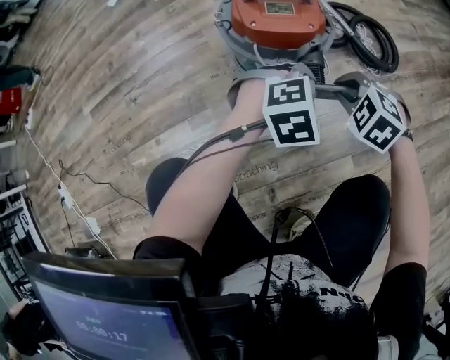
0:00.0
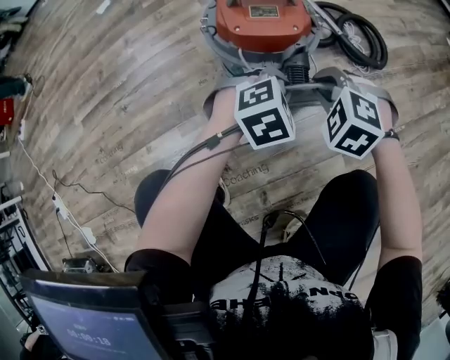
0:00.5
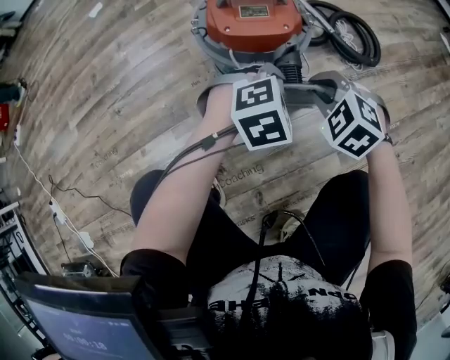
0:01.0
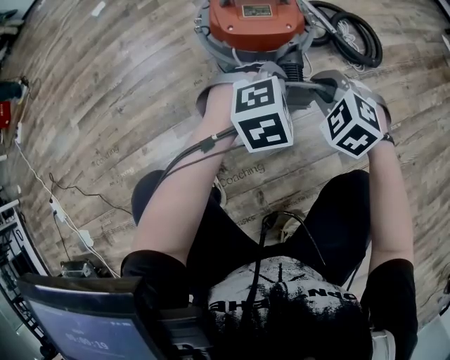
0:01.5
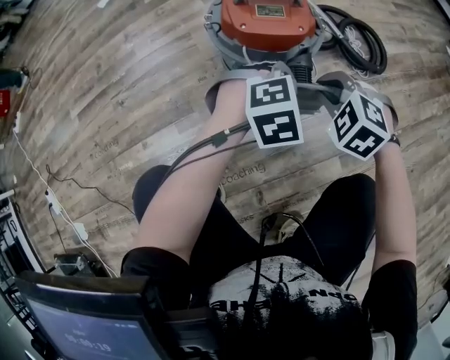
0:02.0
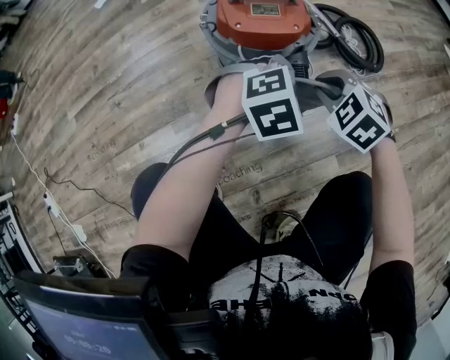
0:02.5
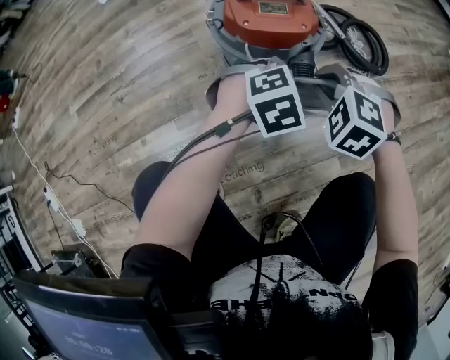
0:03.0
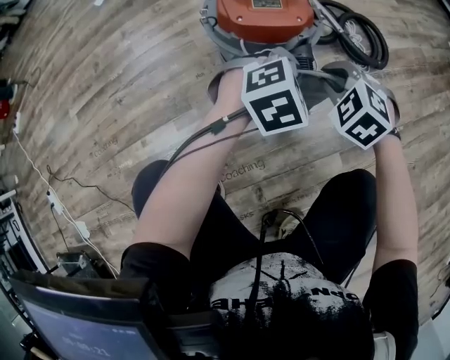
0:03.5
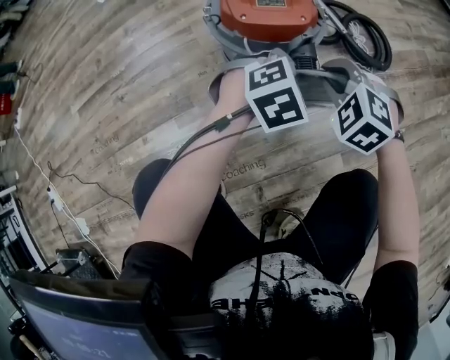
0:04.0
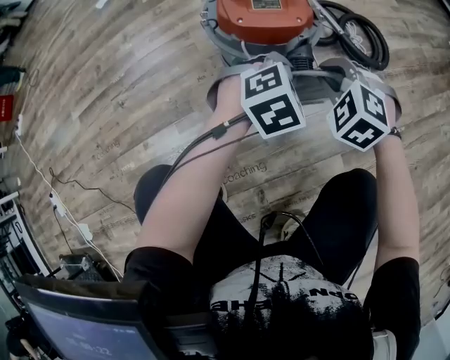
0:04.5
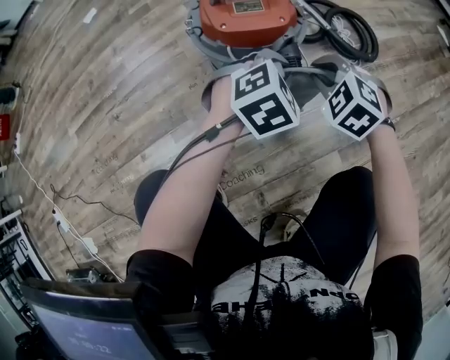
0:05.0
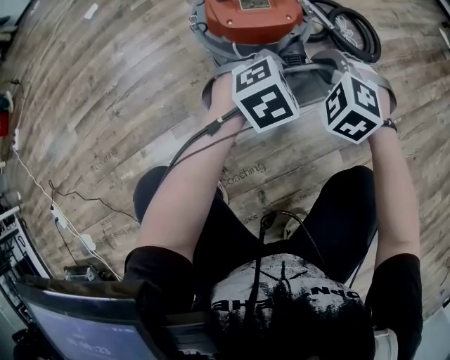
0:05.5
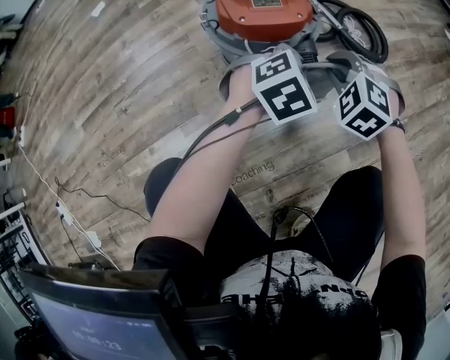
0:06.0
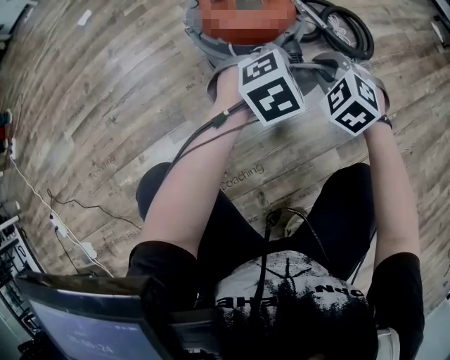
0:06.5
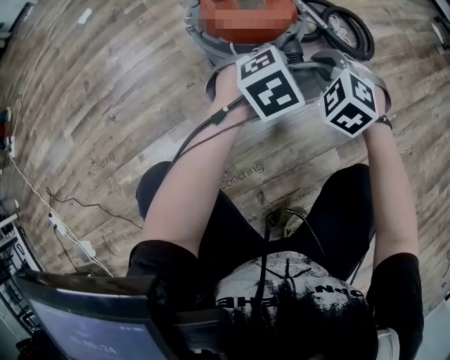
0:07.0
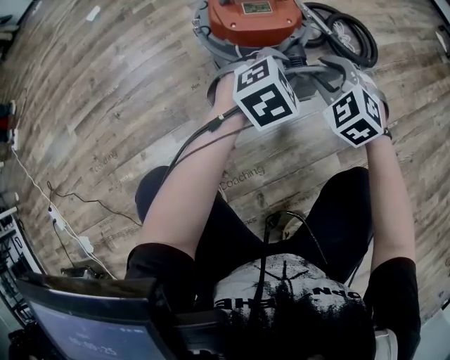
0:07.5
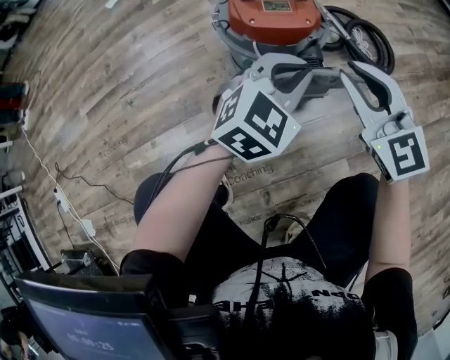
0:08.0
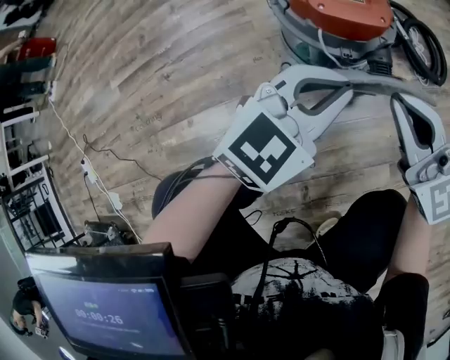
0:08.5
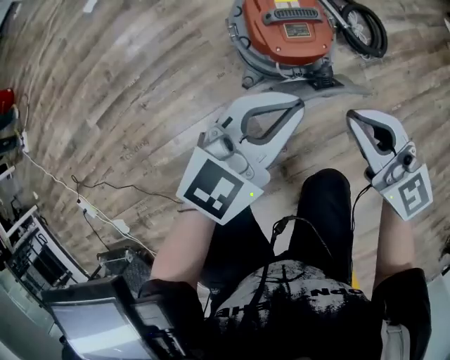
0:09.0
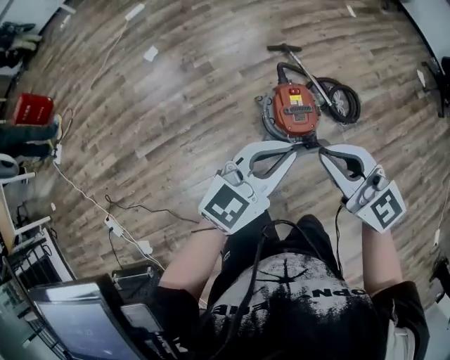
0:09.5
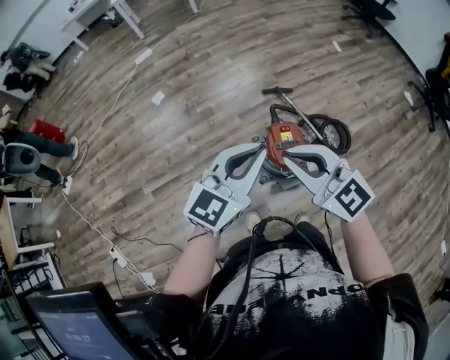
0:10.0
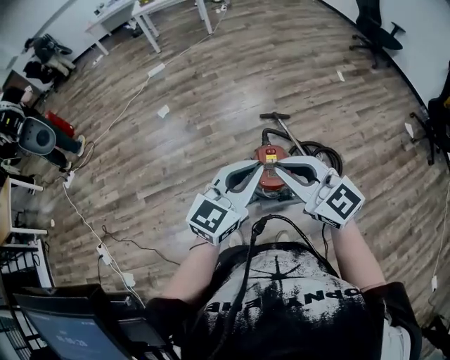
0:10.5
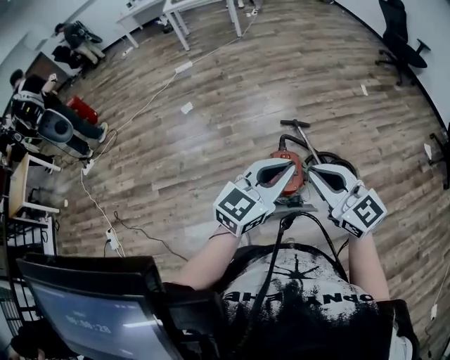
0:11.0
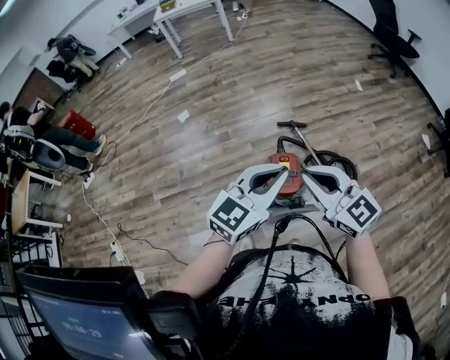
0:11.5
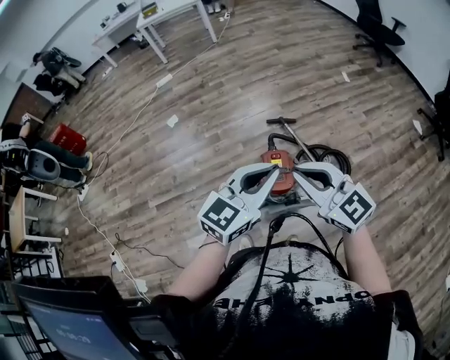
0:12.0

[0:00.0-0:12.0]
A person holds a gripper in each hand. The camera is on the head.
0:00.0 to 0:06.0: The grippers move only a little.
0:06.0 to 0:08.0: Both grippers travel together upward, approximately 10 cm. The right gripper angles its fingers upward, by about 40 degrees; the left gripper turns by roughly 30 degrees.
0:08.0 to 0:10.0: The right gripper moves upward and to the left, approximately 60 cm. Meanwhile the left gripper goes some 60 cm upward, and turns by approximately 20 degrees.
0:10.0 to 0:12.0: Both grippers travel together to the right, approximately 15 cm.

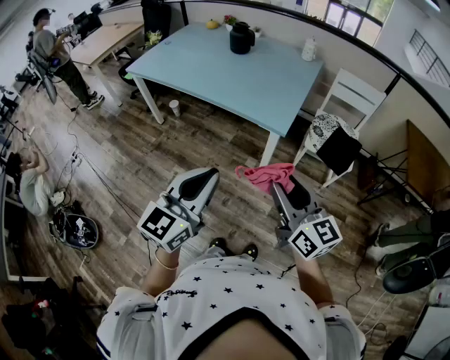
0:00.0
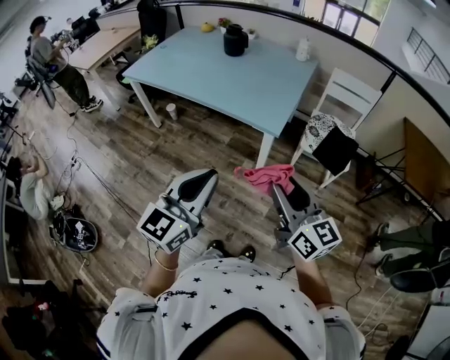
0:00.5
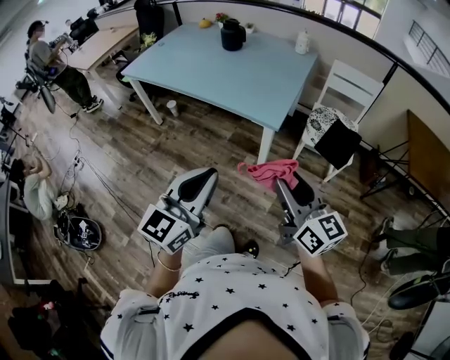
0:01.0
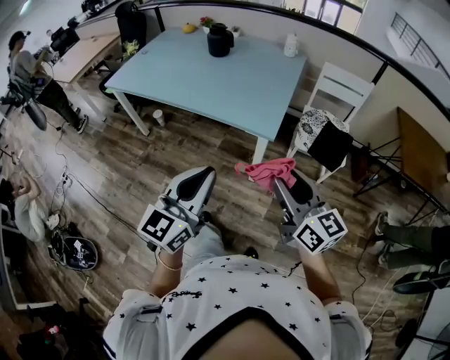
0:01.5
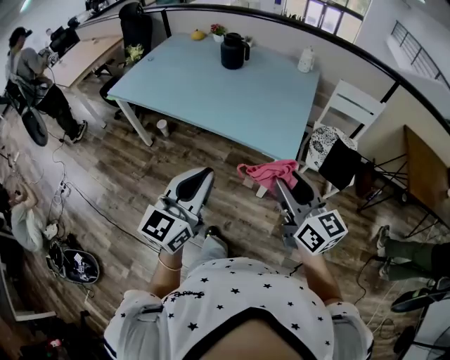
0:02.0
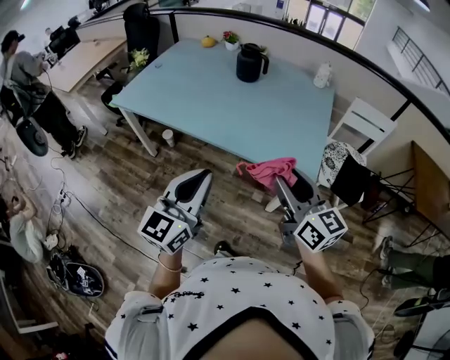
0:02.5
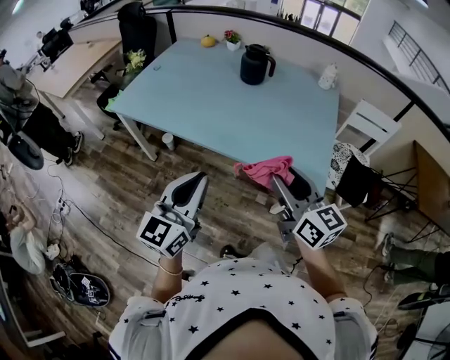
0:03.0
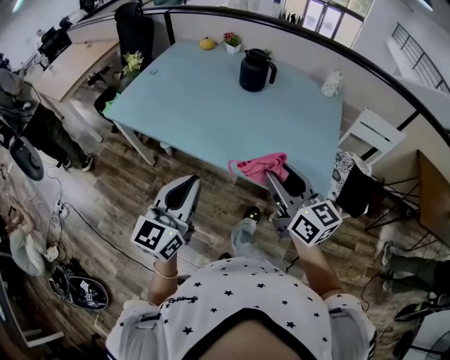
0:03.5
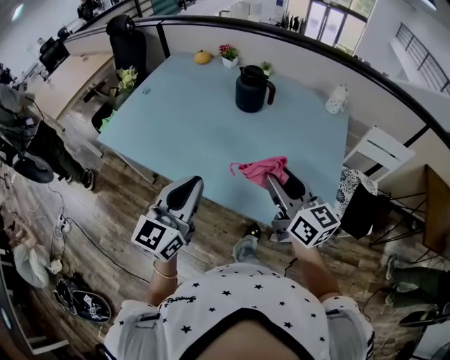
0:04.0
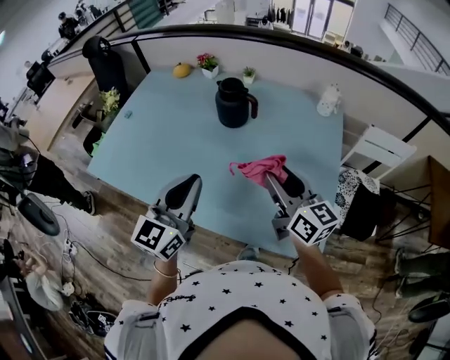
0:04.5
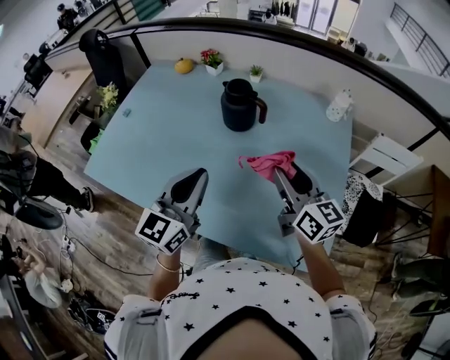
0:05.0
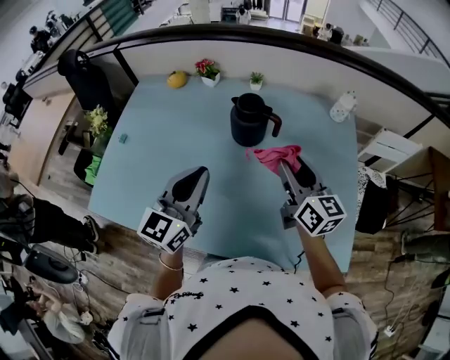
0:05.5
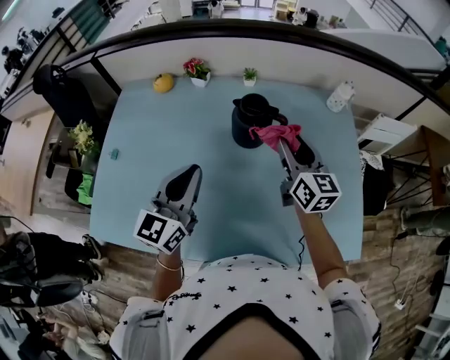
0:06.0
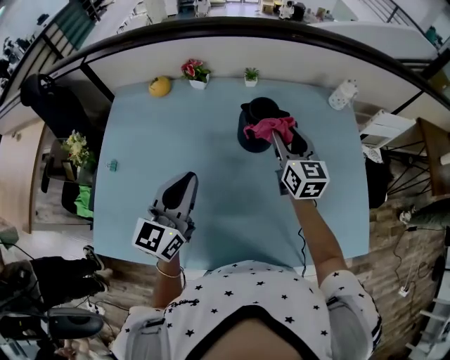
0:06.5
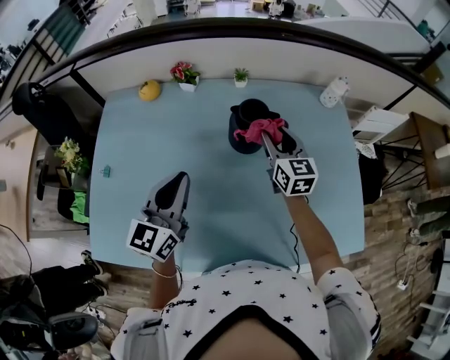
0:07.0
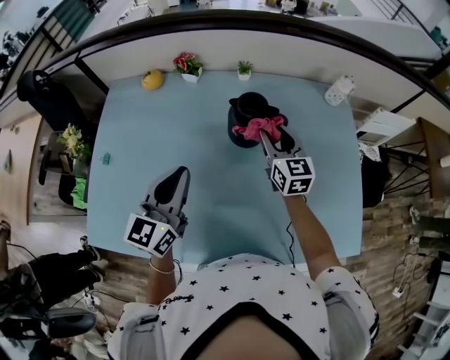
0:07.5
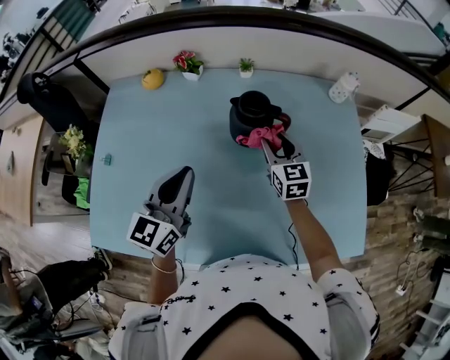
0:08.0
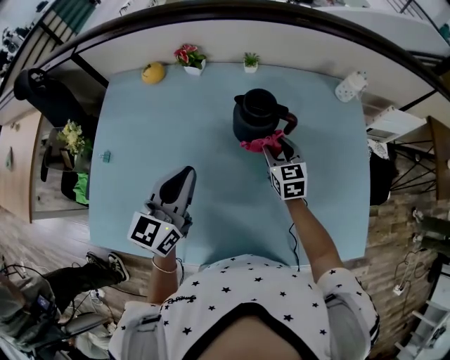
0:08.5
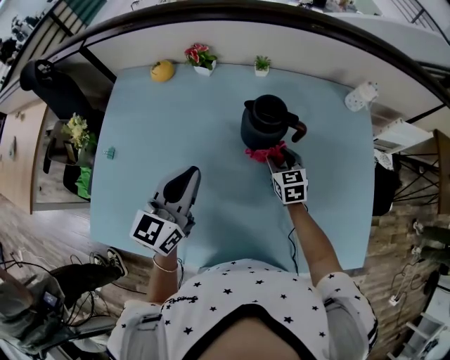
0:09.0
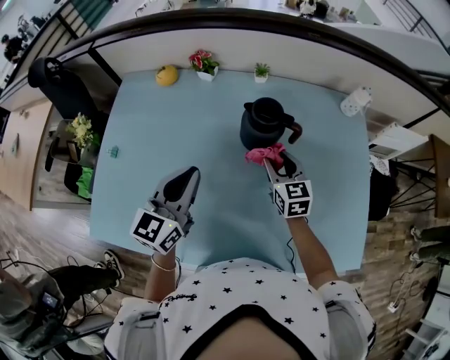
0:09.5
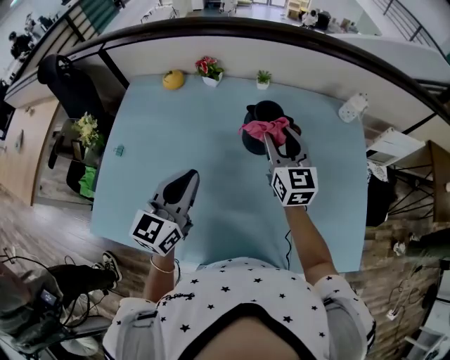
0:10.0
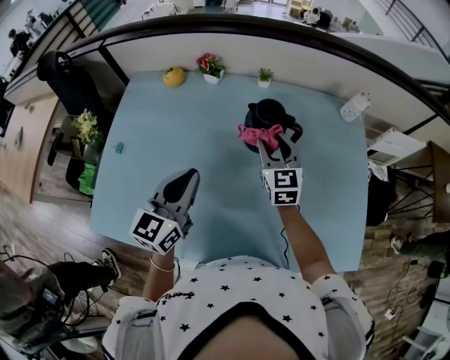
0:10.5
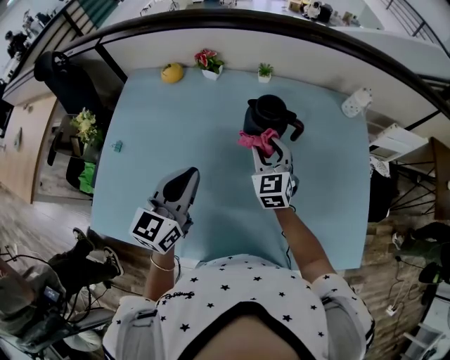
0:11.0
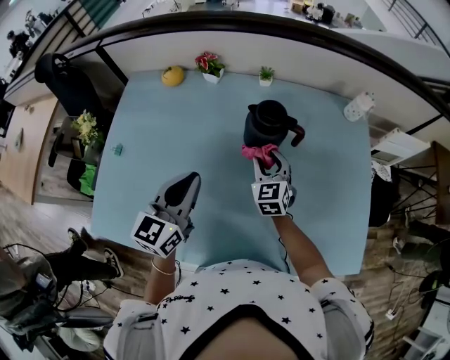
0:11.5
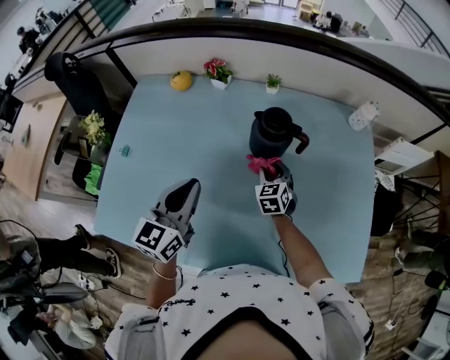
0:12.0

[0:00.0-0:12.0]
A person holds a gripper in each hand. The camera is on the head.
0:00.0 to 0:02.0: The left gripper goes approximately 20 cm forward and to the left. The right gripper goes roughly 15 cm forward.
0:02.0 to 0:04.0: Both grippers move forward, some 35 cm.
0:04.0 to 0:06.0: The grippers both shift forward by some 30 cm. The right gripper changes its angle by about 30 degrees.
0:06.0 to 0:08.0: The right gripper heads downward, covering about 10 cm.
0:08.0 to 0:10.0: The right gripper shifts some 10 cm upward.
0:10.0 to 0:12.0: The right gripper is displaced downward by approximately 20 cm, and rotates roughly 30 degrees.

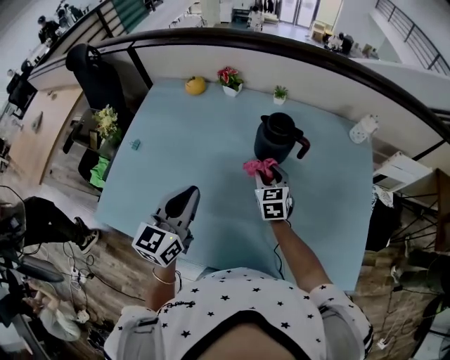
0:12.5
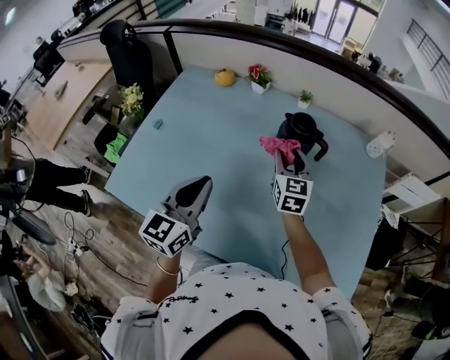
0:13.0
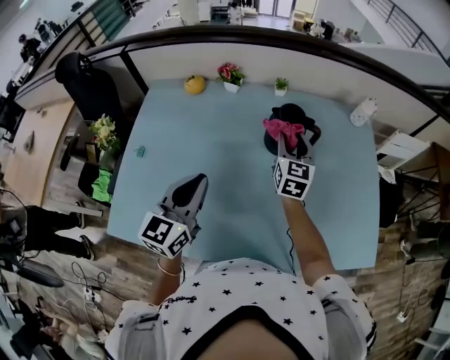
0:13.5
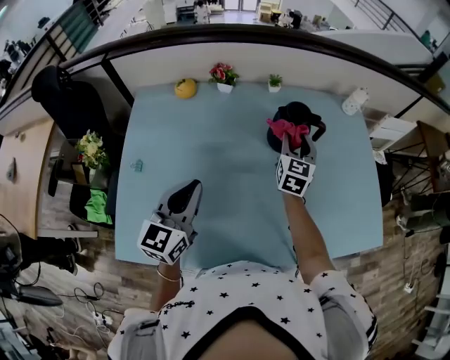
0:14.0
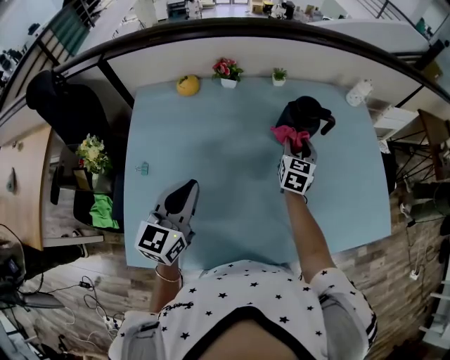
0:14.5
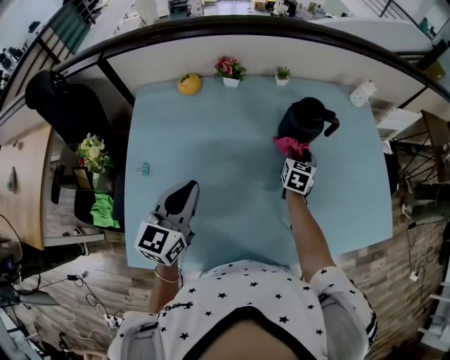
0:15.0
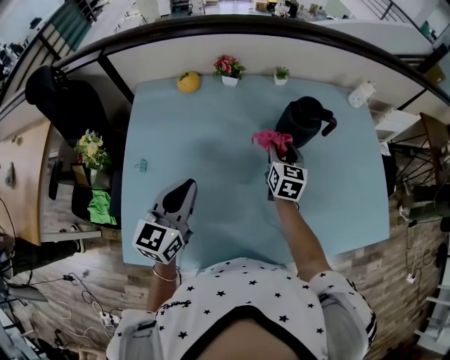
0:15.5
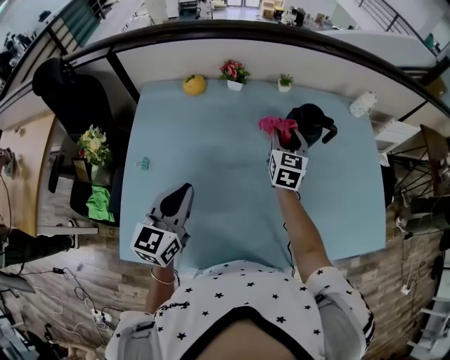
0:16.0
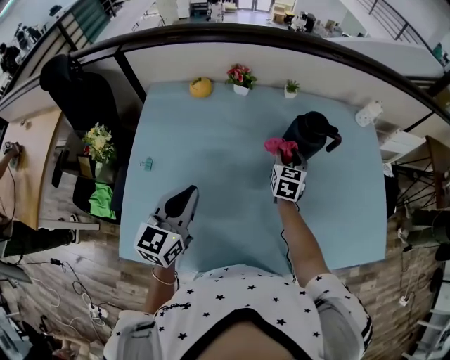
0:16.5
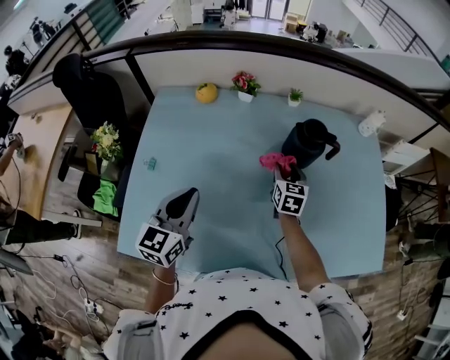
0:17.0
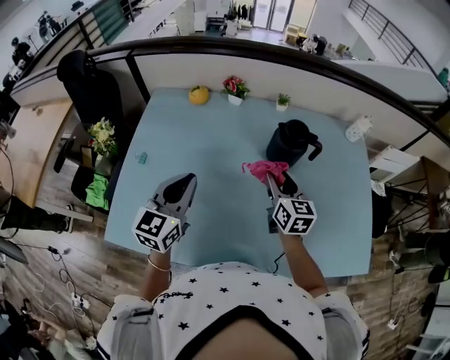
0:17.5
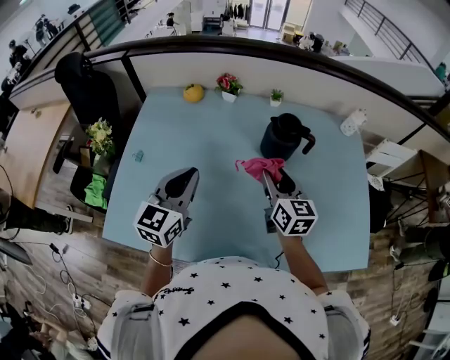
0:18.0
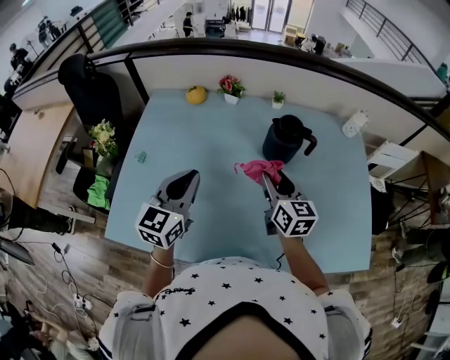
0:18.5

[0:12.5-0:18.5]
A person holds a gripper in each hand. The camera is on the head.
0:12.5 to 0:14.5: The left gripper ends up some 15 cm from where it was; the right gripper reaches roughly 10 cm upward, then returns, and changes its angle by some 40 degrees.
0:14.5 to 0:16.5: The right gripper swings up and down, about 10 cm each way, with 2 reversals.
0:16.5 to 0:18.5: The left gripper moves to the right, roughly 10 cm, while the right gripper goes about 15 cm backward and upward, and changes its angle by roughly 30 degrees.
